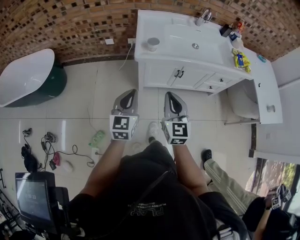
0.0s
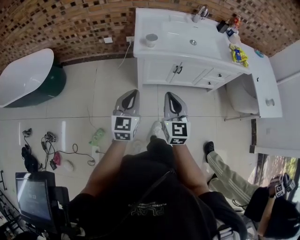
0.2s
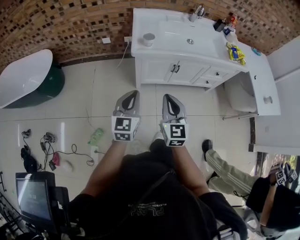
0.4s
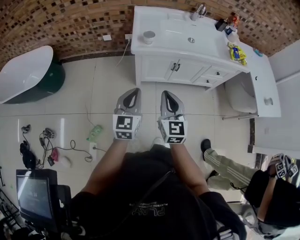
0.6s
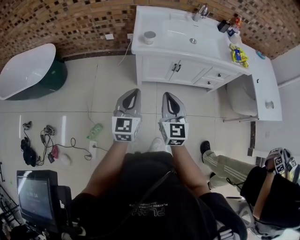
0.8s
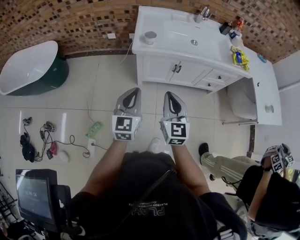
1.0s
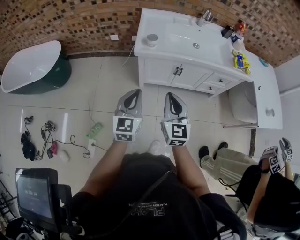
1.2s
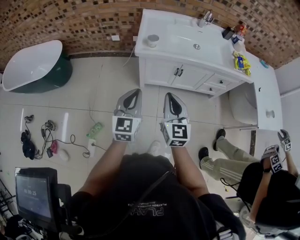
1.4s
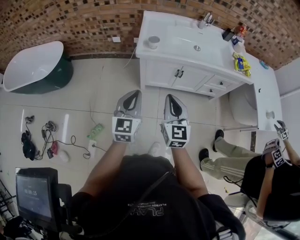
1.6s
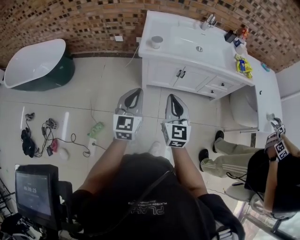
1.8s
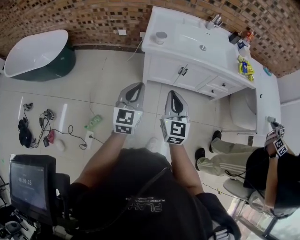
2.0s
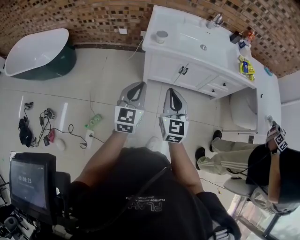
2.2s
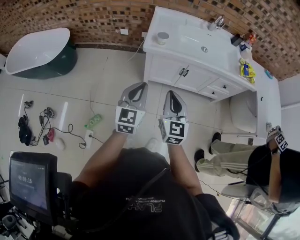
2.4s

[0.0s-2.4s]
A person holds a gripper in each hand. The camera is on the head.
0.0s to 1.2s: The left gripper heads to the right and backward, covering approximately 10 cm; the right gripper moves about 5 cm.
1.2s to 2.4s: The grippers move only a little.

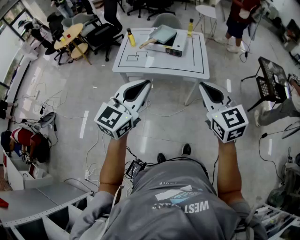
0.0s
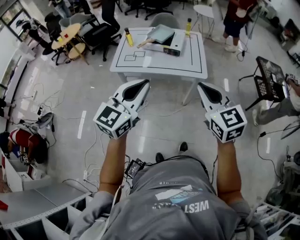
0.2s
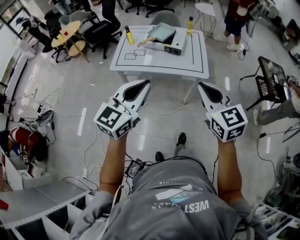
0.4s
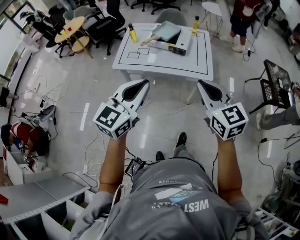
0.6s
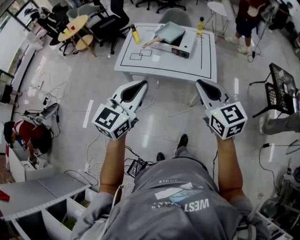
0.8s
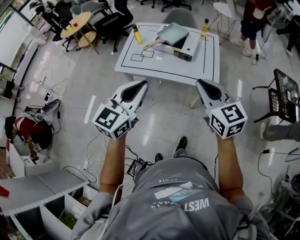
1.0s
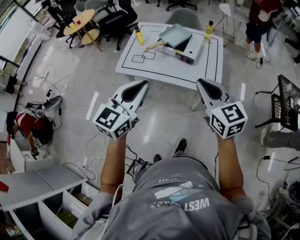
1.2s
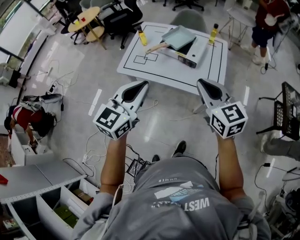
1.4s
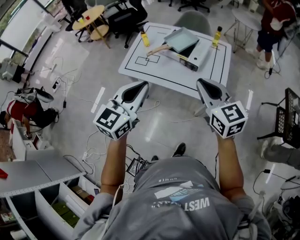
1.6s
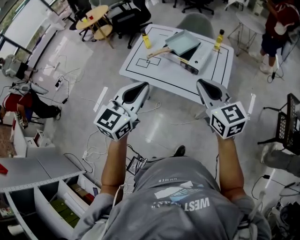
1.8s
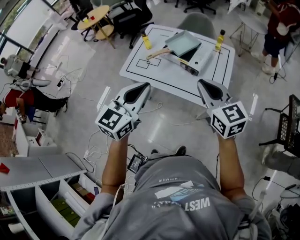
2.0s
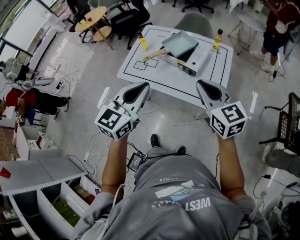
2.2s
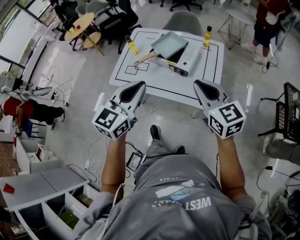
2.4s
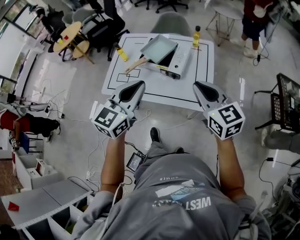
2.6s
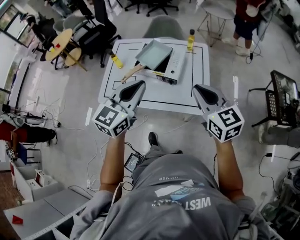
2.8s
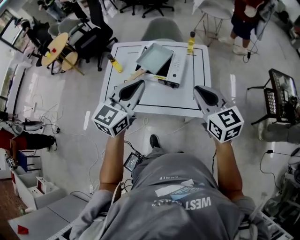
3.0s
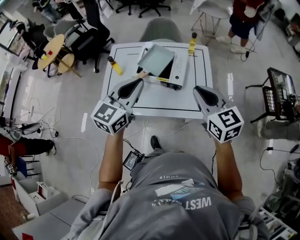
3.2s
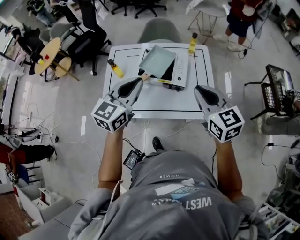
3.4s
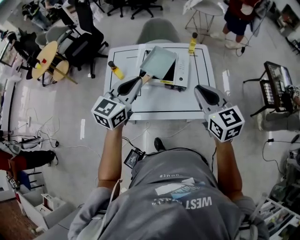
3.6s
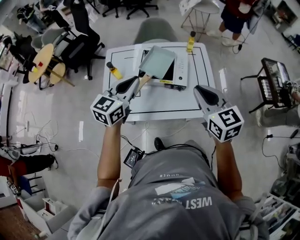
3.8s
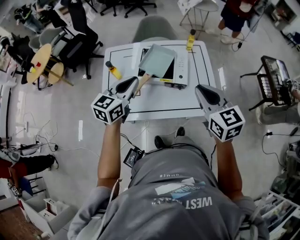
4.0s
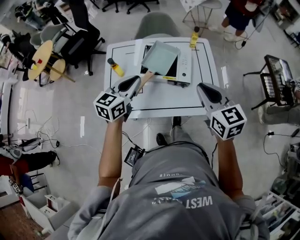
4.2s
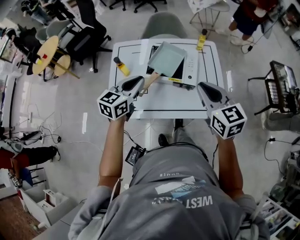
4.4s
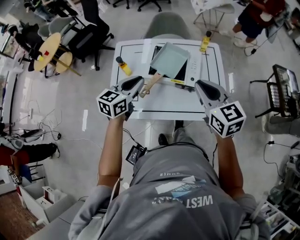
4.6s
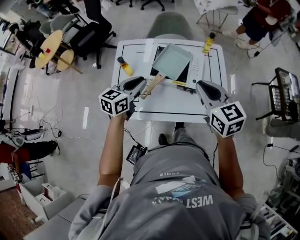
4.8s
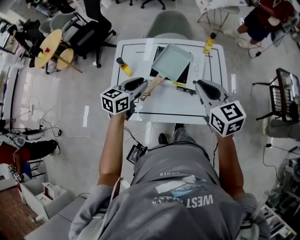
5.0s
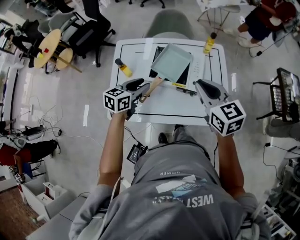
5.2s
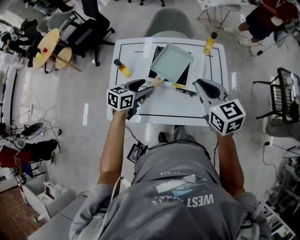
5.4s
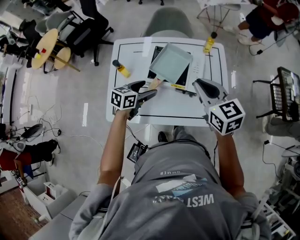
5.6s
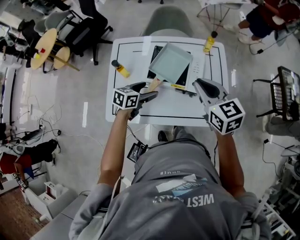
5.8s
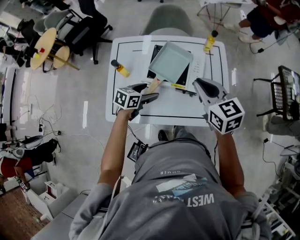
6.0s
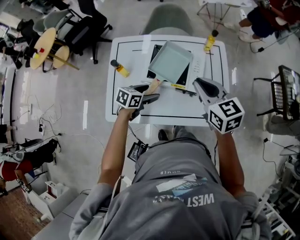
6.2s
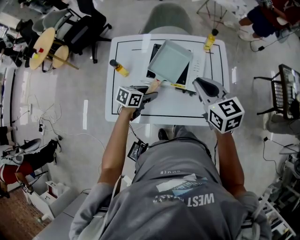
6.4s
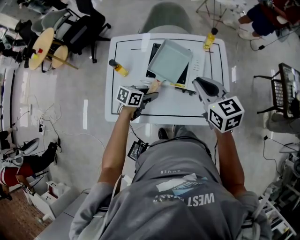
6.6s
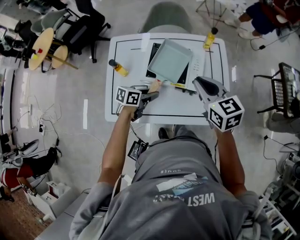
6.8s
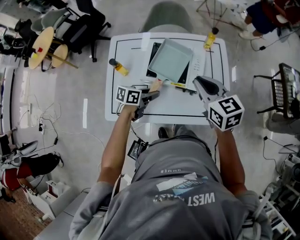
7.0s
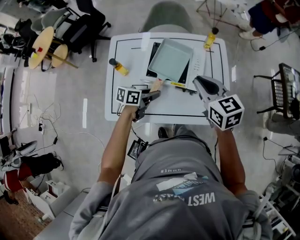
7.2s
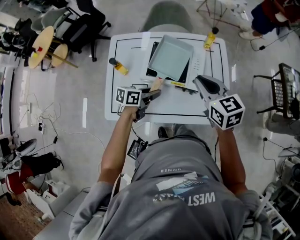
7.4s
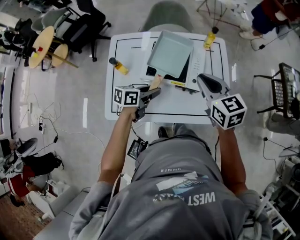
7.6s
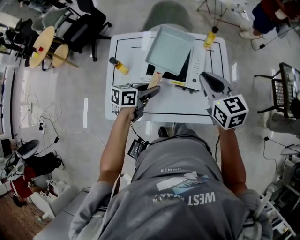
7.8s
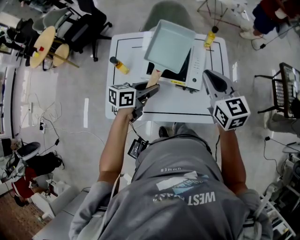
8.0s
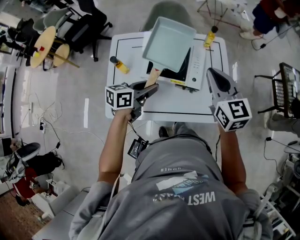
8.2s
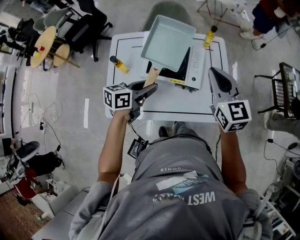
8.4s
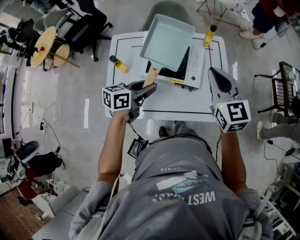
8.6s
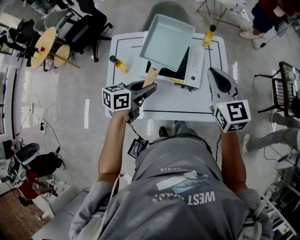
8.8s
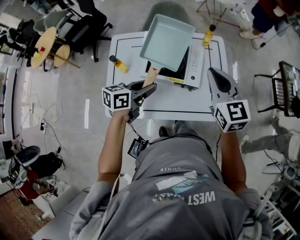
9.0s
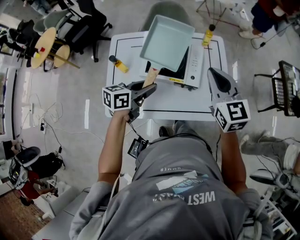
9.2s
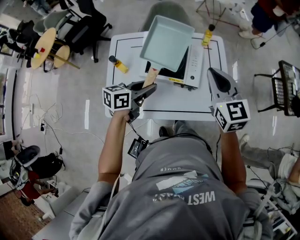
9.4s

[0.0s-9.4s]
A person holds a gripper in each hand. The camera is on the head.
0.0s to 1.6s: The two grippers go some 20 cm forward.
1.6s to 3.2s: The left gripper heads forward, covering some 20 cm. Meanwhile the right gripper shifts approximately 15 cm forward.
3.2s to 4.8s: The right gripper shifts approximately 10 cm to the left and forward; the left gripper heads downward, to the left and forward, covering some 20 cm, and changes its angle by about 20 degrees.
4.8s to 6.2s: The left gripper shifts some 15 cm downward, changes its angle by some 30 degrees, and opens, while the right gripper heads forward, covering some 5 cm.
6.2s to 7.8s: The left gripper is displaced upward by some 5 cm, and closes up.
7.8s to 9.4s: The left gripper heads upward, covering some 5 cm, while the right gripper changes place by roughly 5 cm.

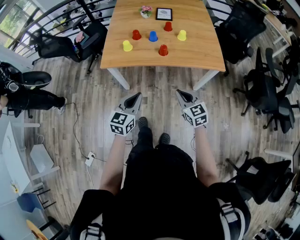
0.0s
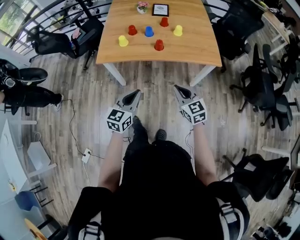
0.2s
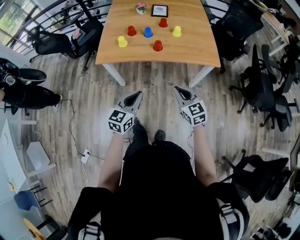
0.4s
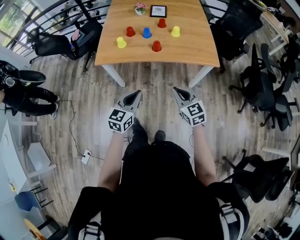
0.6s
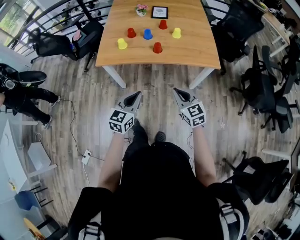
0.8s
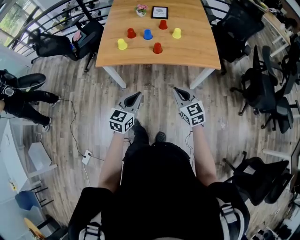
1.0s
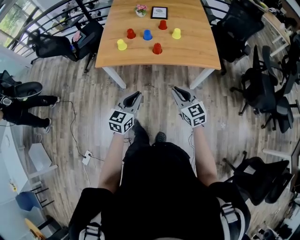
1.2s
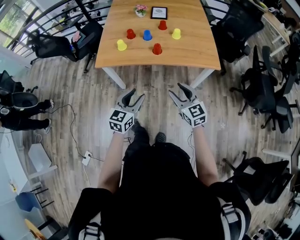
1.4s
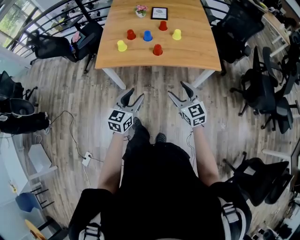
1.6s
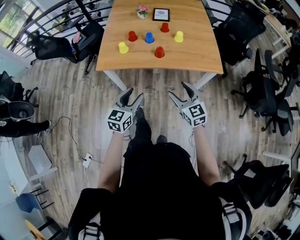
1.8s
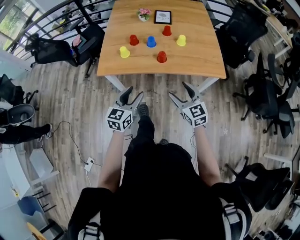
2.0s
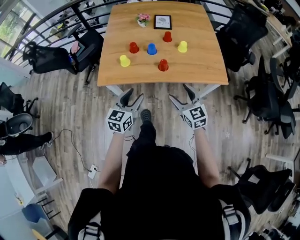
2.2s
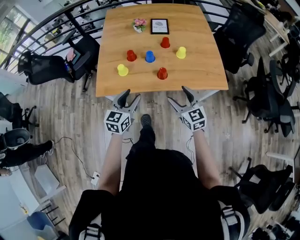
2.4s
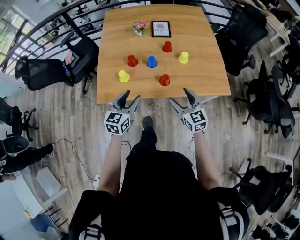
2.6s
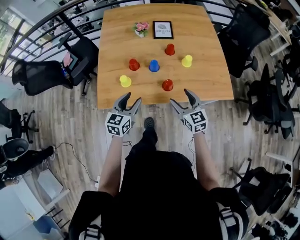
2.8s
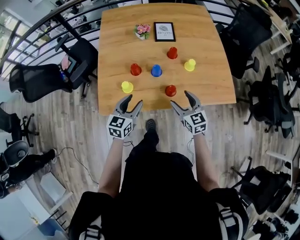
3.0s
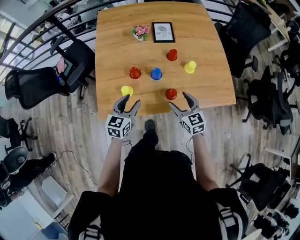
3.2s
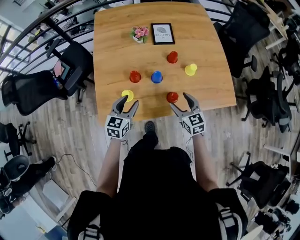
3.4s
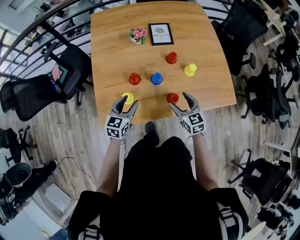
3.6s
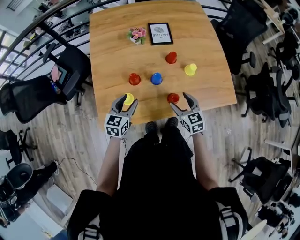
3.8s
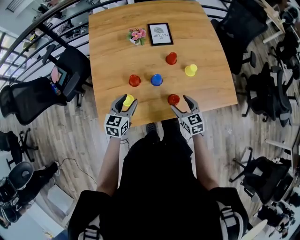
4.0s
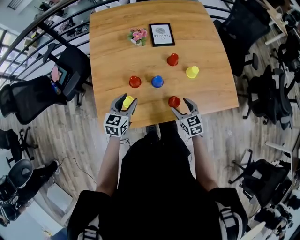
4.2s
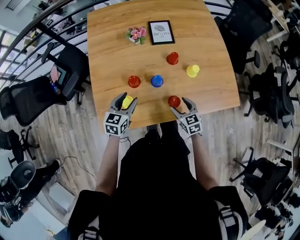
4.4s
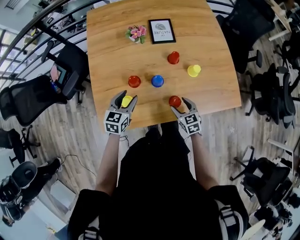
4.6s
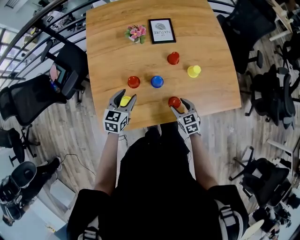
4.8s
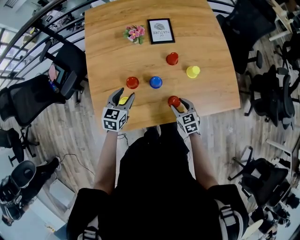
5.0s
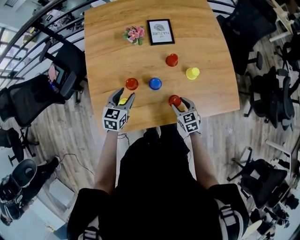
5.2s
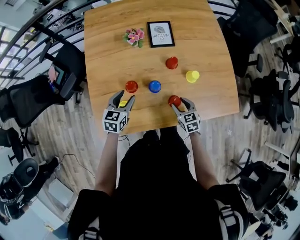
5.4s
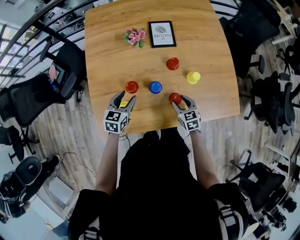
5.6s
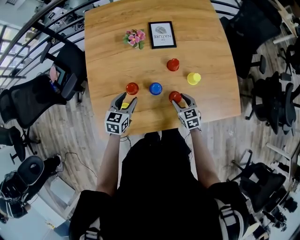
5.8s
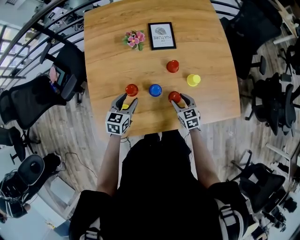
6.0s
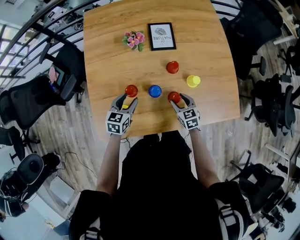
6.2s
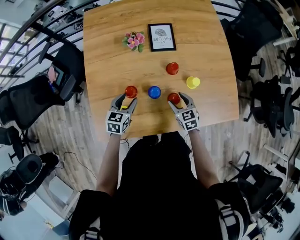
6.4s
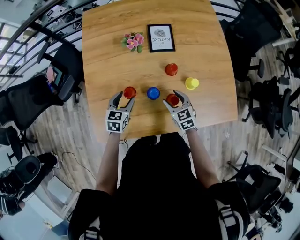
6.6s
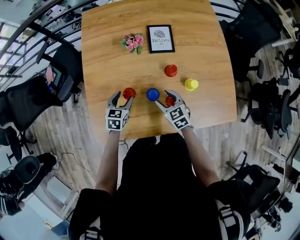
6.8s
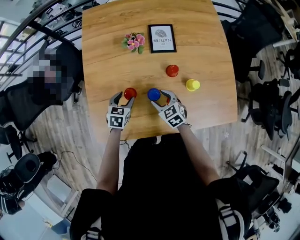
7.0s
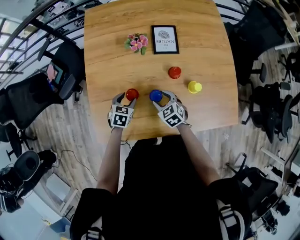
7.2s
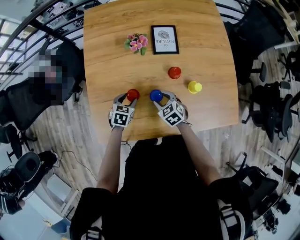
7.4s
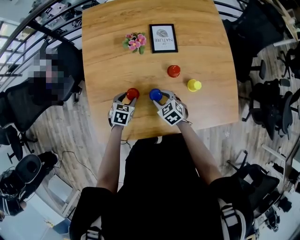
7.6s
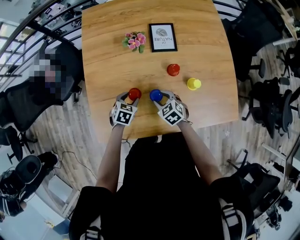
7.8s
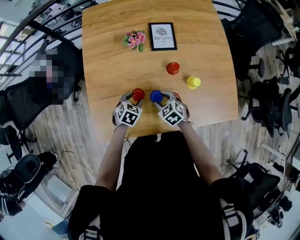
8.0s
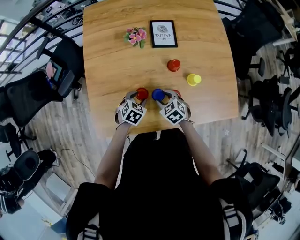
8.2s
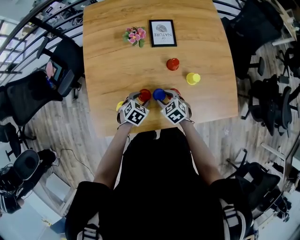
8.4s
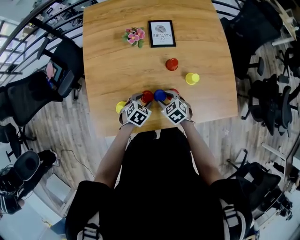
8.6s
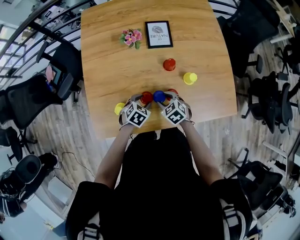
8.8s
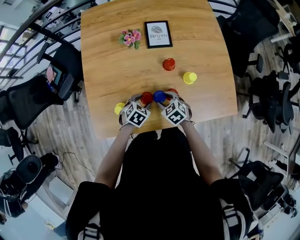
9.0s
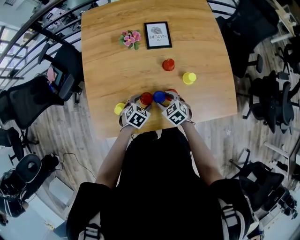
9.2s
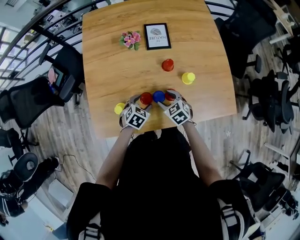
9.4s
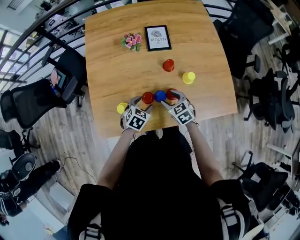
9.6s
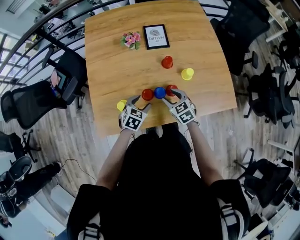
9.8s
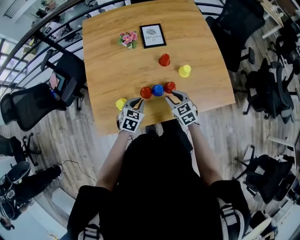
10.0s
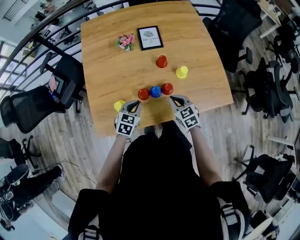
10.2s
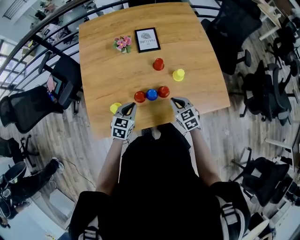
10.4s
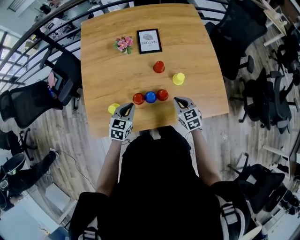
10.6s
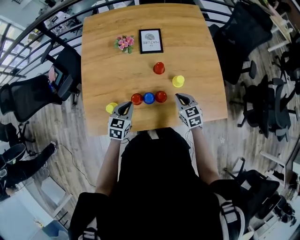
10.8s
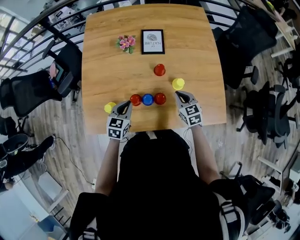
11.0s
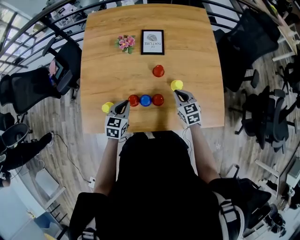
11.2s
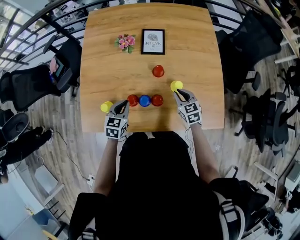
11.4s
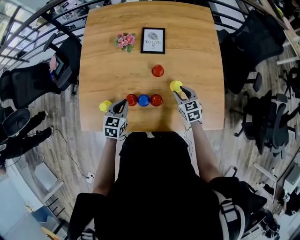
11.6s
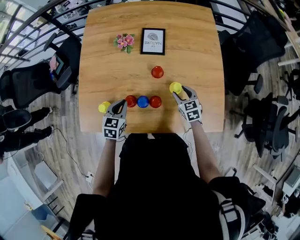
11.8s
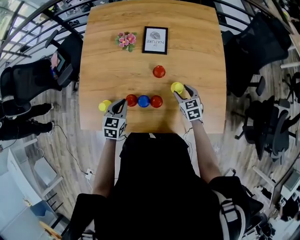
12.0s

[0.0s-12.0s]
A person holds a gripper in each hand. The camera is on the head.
0.0s to 1.6s: The left gripper opens. Meanwhile the right gripper opens up.
1.6s to 3.0s: The grippers both shift forward by some 30 cm.
3.0s to 4.4s: The left gripper travels forward and downward by roughly 15 cm. The right gripper travels downward and forward by some 15 cm.
4.4s to 6.0s: Both grippers move forward, roughly 5 cm.
6.0s to 7.6s: The left gripper heads downward, covering some 10 cm, and turns by approximately 20 degrees. The right gripper heads to the left, covering approximately 10 cm, and changes its angle by approximately 20 degrees.
7.6s to 9.0s: The left gripper is displaced to the right and backward by some 10 cm; the right gripper travels backward by roughly 5 cm.
9.0s to 10.4s: The left gripper moves upward, some 10 cm, changes its angle by approximately 30 degrees, and closes its fingers. The right gripper shifts about 10 cm to the right and upward, turns by approximately 20 degrees, and closes.
10.4s to 12.0s: The right gripper heads forward and to the right, covering some 15 cm, and opens up, while the left gripper is displaced forward by approximately 5 cm.
